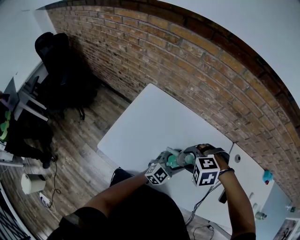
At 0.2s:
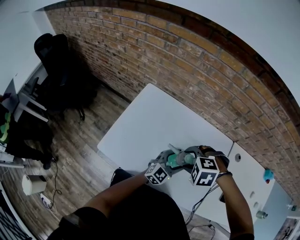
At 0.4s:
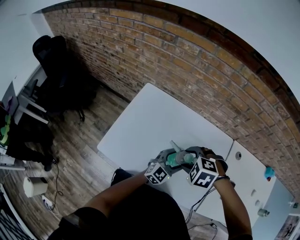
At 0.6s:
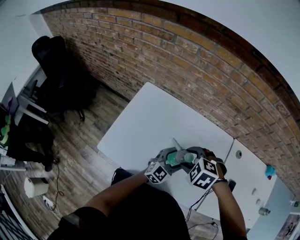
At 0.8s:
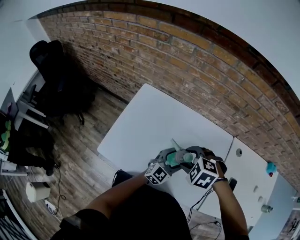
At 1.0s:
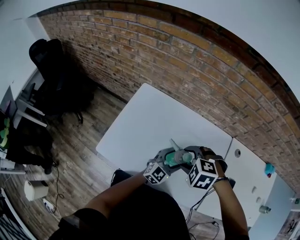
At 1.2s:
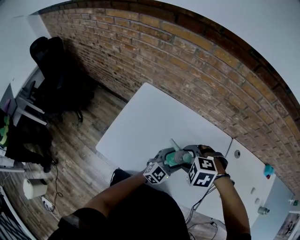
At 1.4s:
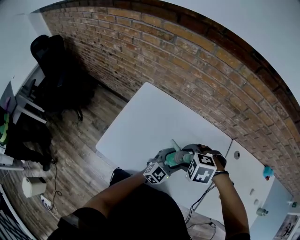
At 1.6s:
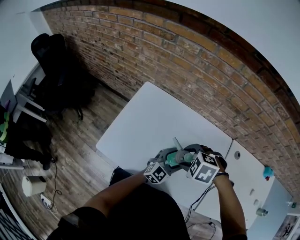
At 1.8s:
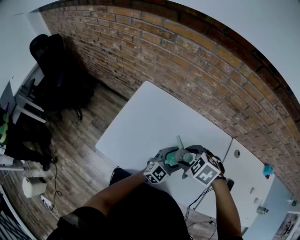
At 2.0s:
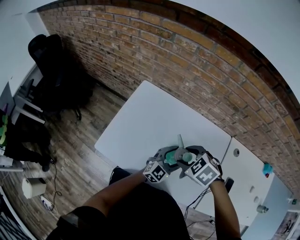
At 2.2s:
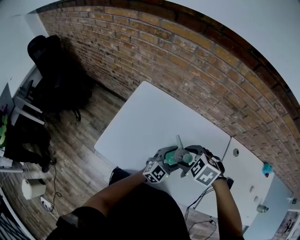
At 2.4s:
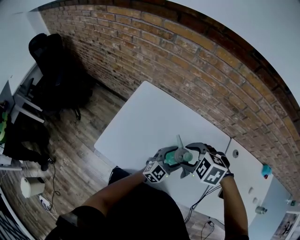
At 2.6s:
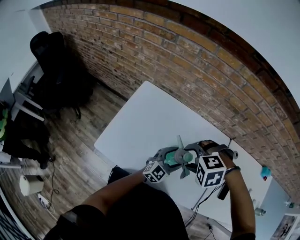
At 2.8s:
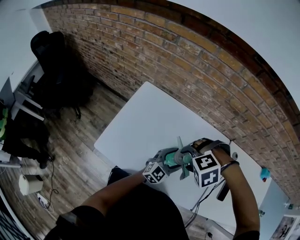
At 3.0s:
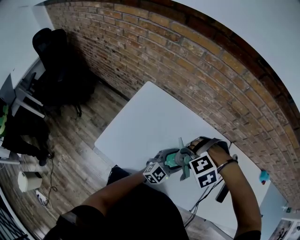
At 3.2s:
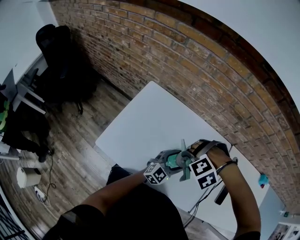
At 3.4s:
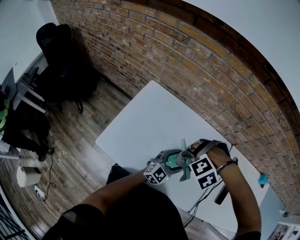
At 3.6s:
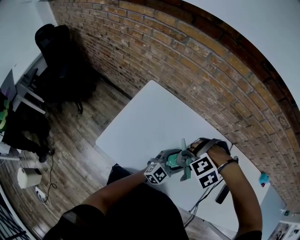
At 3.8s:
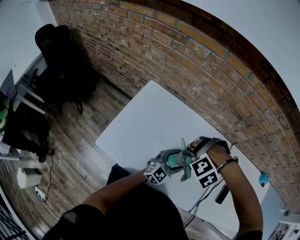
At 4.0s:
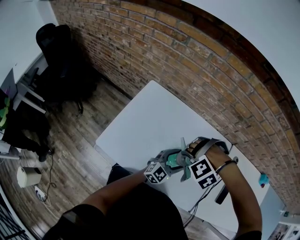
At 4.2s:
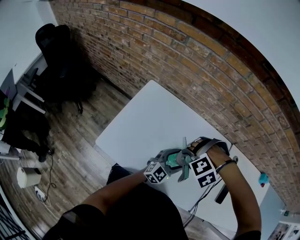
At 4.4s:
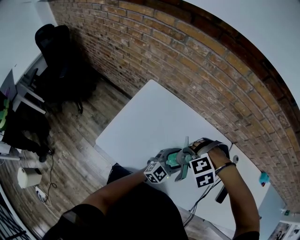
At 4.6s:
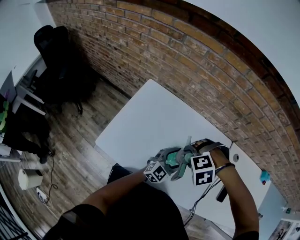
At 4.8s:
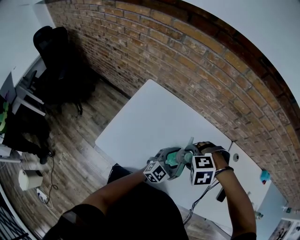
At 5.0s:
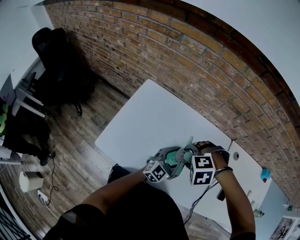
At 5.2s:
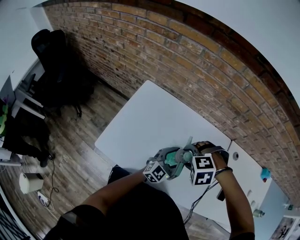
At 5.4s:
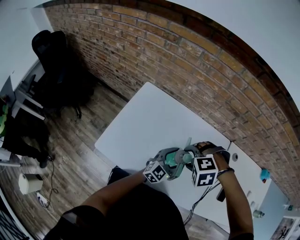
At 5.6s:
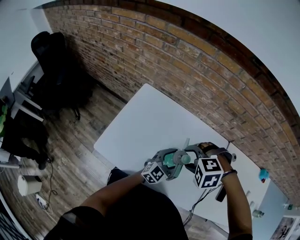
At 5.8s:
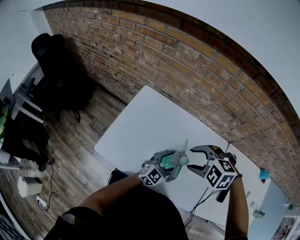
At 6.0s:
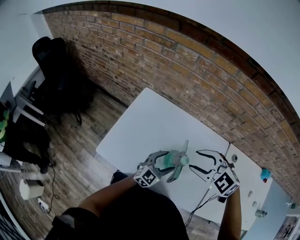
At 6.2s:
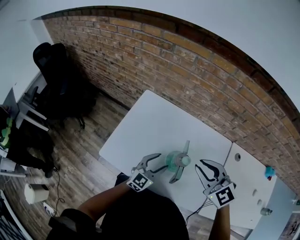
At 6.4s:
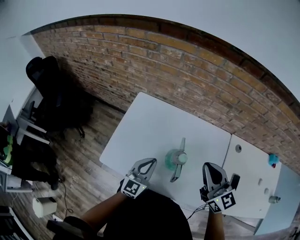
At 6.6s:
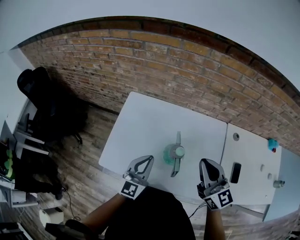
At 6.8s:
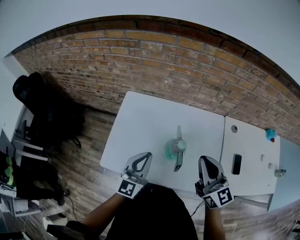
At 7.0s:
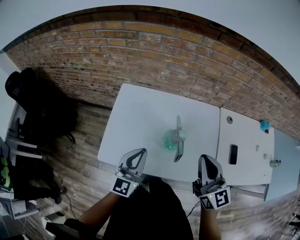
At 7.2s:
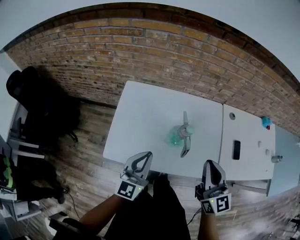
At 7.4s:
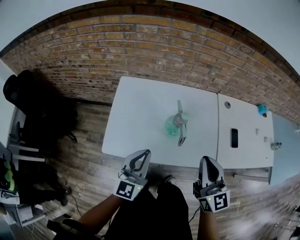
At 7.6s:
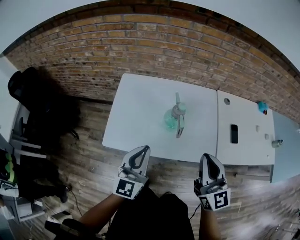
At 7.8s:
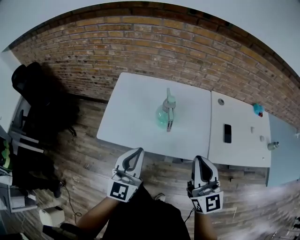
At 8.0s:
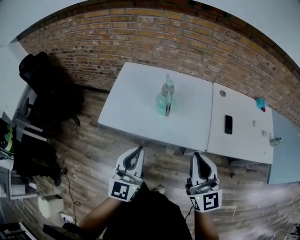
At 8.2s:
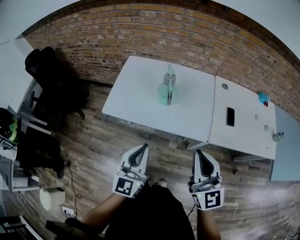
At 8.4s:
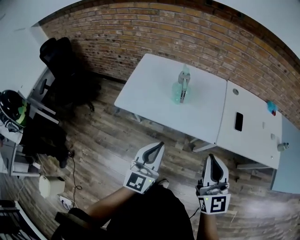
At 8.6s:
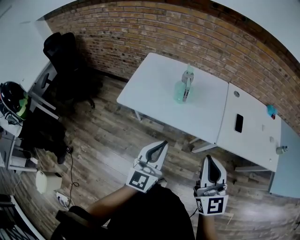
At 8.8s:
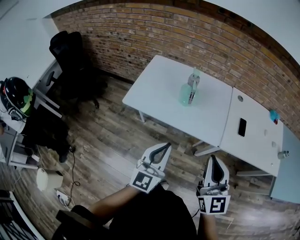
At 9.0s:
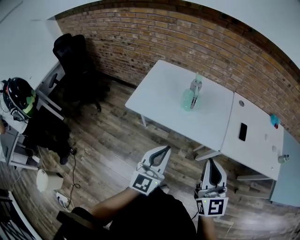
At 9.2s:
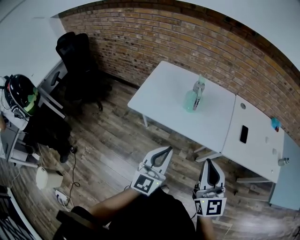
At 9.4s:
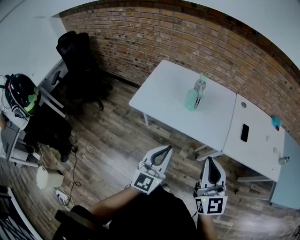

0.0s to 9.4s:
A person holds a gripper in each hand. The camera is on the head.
0.0s to 1.6s: The right gripper turns by some 20 degrees.
1.6s to 3.2s: The right gripper rotates around the line of its fingers by some 50 degrees, counterclockwise from behind.
3.2s to 4.8s: The right gripper rotates some 30 degrees.
4.8s to 6.2s: The right gripper travels upward by roughly 10 cm, points its fingers about 60 degrees further upward, and closes up. The left gripper changes place by roughly 10 cm.
6.2s to 7.8s: The left gripper goes about 30 cm backward and upward, and closes its fingers. Meanwhile the right gripper moves backward, roughly 25 cm, rotates roughly 50 degrees, and closes its fingers.
7.8s to 9.4s: The grippers both shift backward by approximately 20 cm.

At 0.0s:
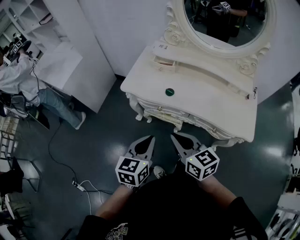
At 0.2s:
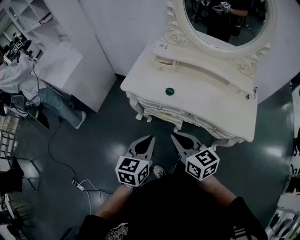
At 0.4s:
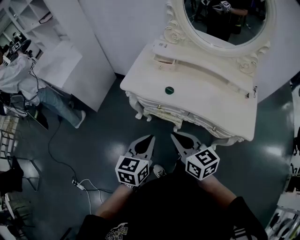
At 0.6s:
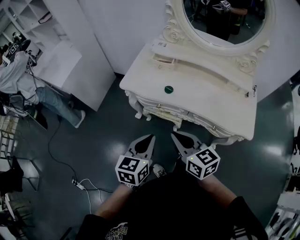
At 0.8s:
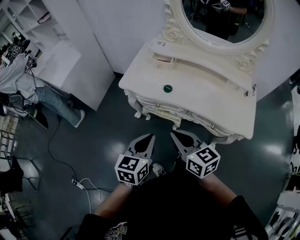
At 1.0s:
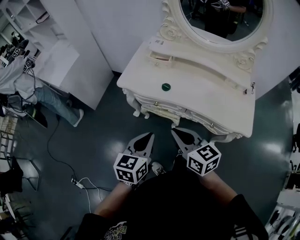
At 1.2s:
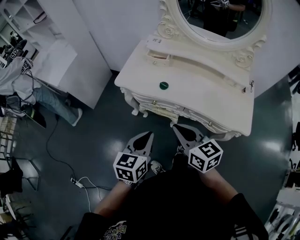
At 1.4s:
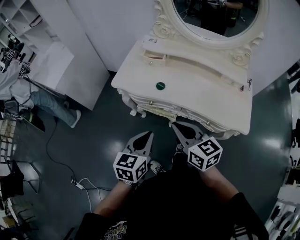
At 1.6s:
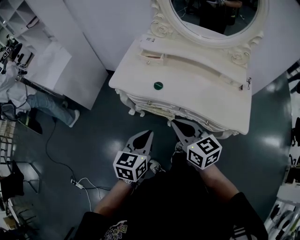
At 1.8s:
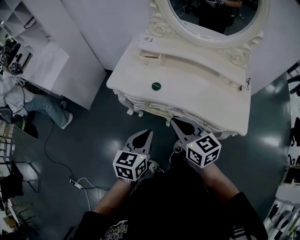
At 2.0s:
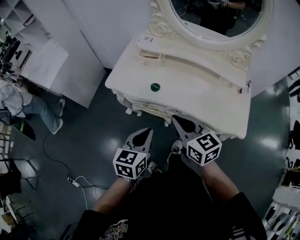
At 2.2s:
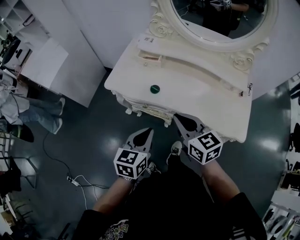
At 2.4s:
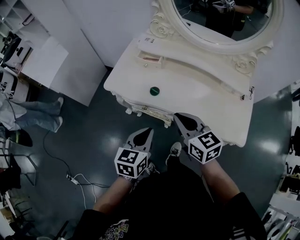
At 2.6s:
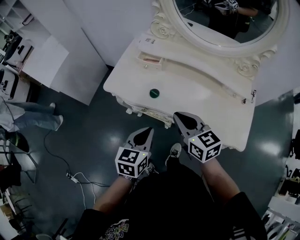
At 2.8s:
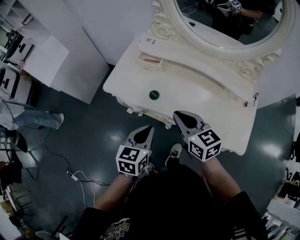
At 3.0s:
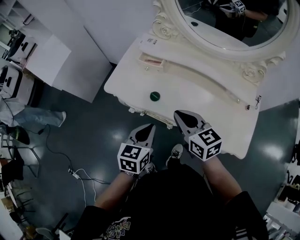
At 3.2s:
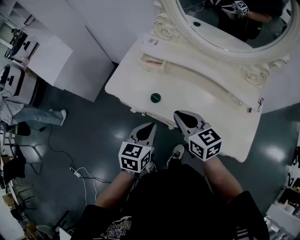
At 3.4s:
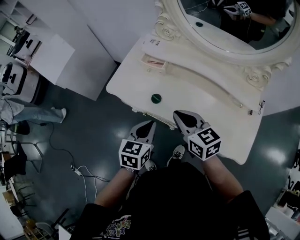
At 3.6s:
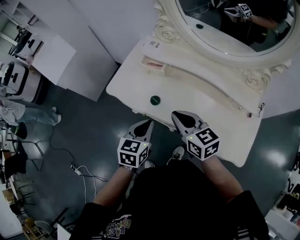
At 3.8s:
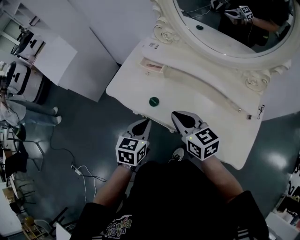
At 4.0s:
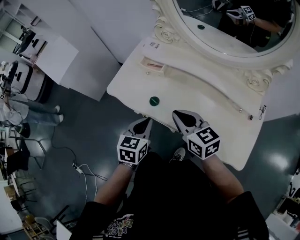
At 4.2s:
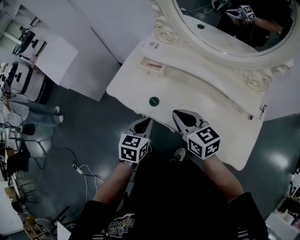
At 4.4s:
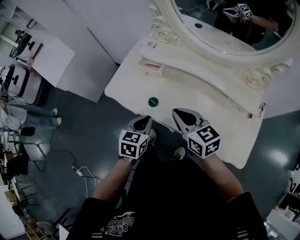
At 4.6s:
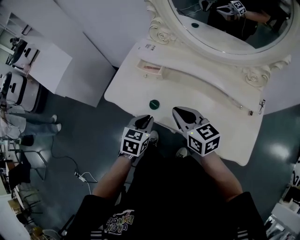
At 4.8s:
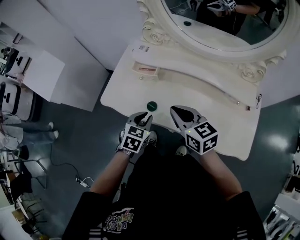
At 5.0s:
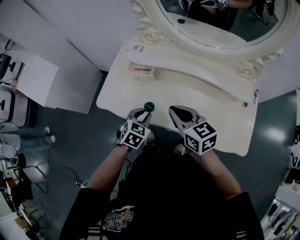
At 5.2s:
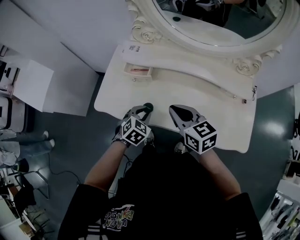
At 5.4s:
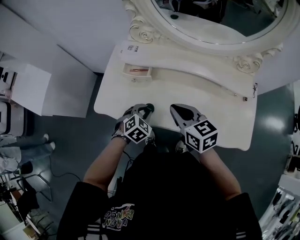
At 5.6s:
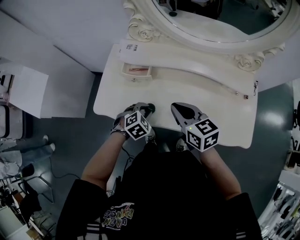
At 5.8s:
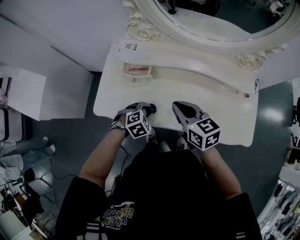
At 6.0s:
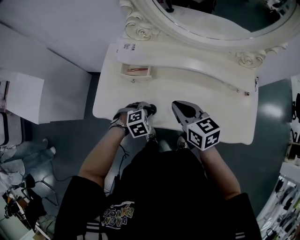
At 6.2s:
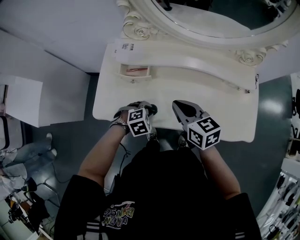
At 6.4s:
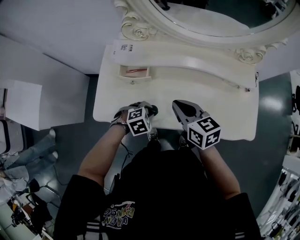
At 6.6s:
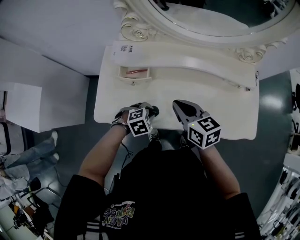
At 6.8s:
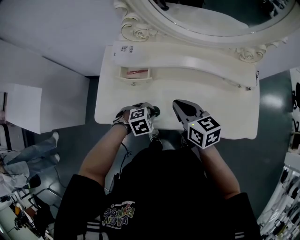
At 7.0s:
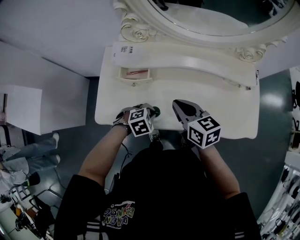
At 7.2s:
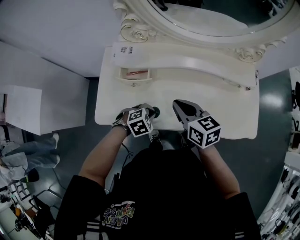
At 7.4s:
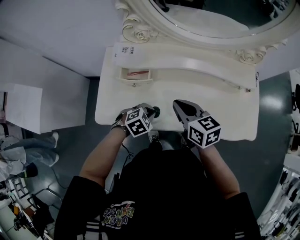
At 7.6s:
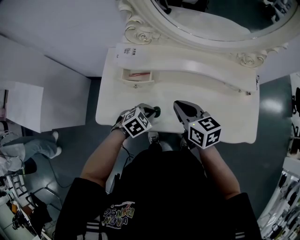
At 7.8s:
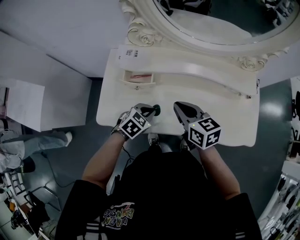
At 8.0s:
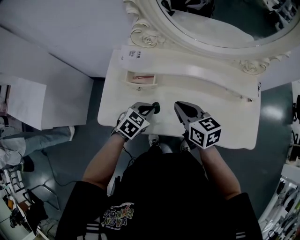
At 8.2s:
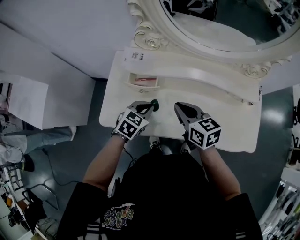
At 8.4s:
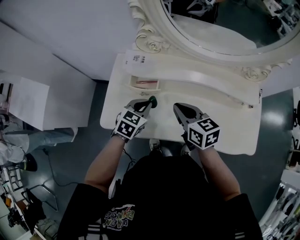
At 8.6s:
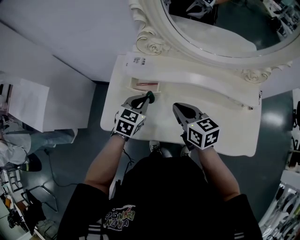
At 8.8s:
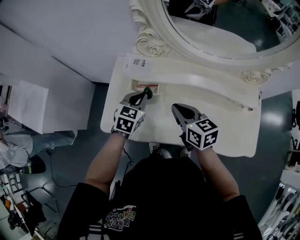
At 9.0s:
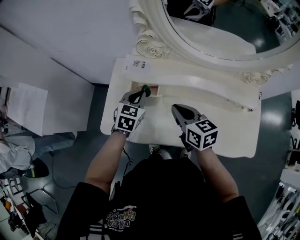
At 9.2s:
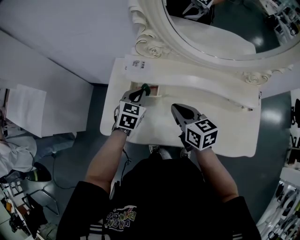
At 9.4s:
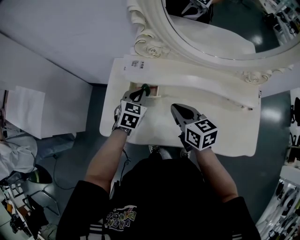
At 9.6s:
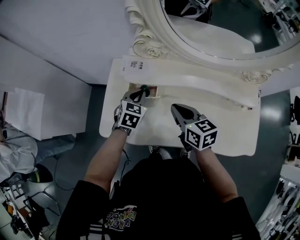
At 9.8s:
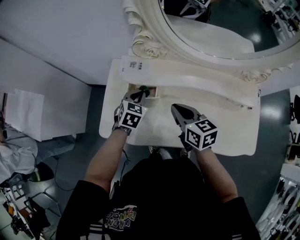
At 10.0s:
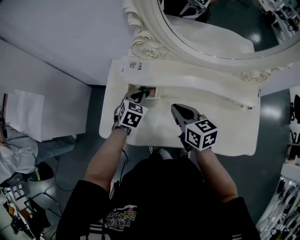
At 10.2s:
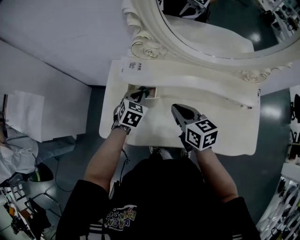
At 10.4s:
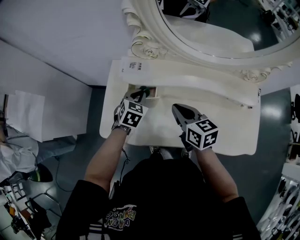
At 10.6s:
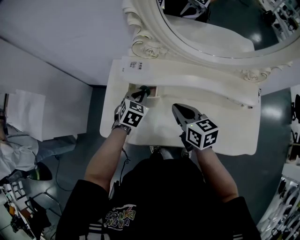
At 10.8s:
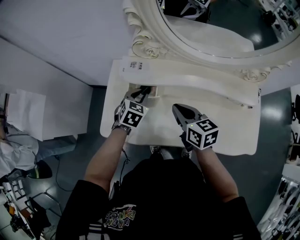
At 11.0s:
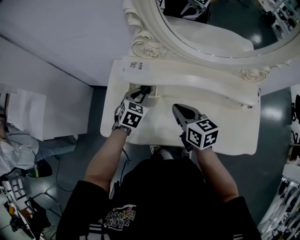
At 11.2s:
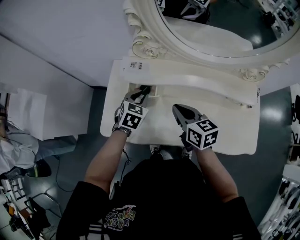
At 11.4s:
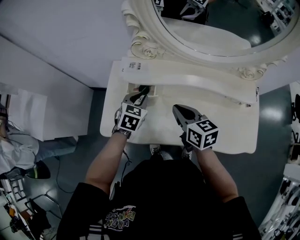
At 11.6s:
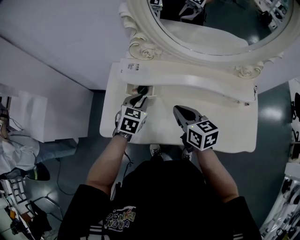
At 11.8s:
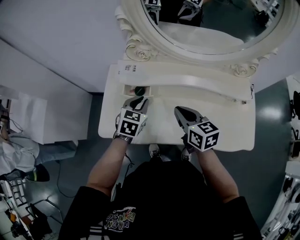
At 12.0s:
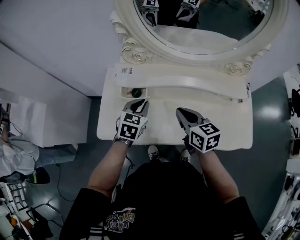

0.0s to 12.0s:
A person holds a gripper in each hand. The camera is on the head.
0.0s to 1.6s: Both grippers move to the right, some 5 cm.
1.6s to 3.0s: Both grippers move forward and to the right, approximately 15 cm.
3.0s to 4.4s: The left gripper heads forward, covering approximately 5 cm.
4.4s to 6.0s: The right gripper shifts by some 10 cm, and changes its angle by roughly 20 degrees. The left gripper moves downward, some 15 cm, and rotates around the line of its fingers by about 60 degrees, clockwise from behind.
6.0s to 7.6s: There are only small adjustments of the grippers.
7.6s to 9.0s: The right gripper changes place by some 5 cm, while the left gripper is displaced forward, upward and to the left by approximately 20 cm, and changes its angle by some 40 degrees.
9.0s to 10.4s: The grippers stay close to where they were, moving slightly.
10.4s to 12.0s: The left gripper is displaced upward, backward and to the right by roughly 10 cm. The right gripper goes some 10 cm to the right and backward.

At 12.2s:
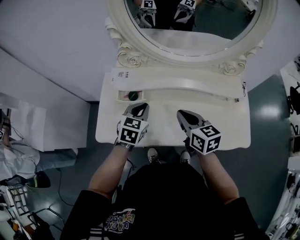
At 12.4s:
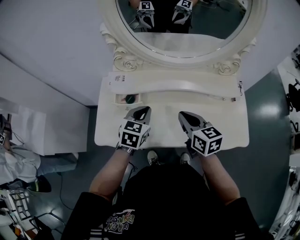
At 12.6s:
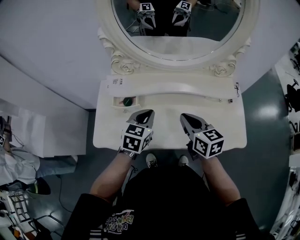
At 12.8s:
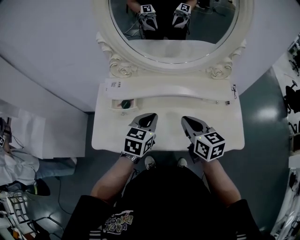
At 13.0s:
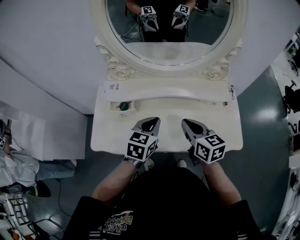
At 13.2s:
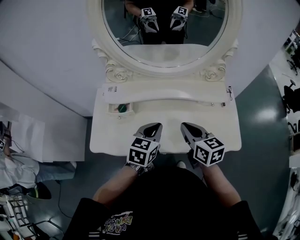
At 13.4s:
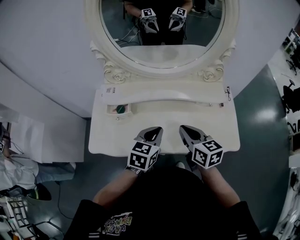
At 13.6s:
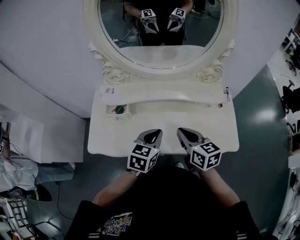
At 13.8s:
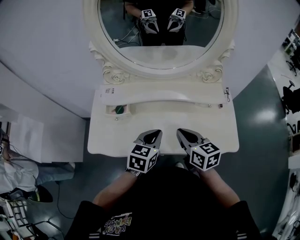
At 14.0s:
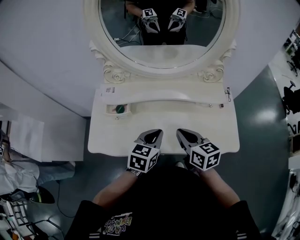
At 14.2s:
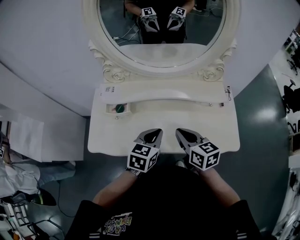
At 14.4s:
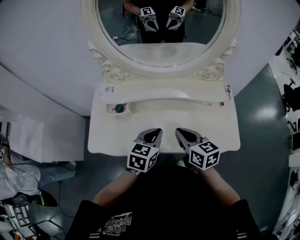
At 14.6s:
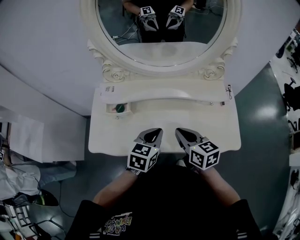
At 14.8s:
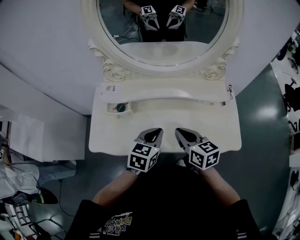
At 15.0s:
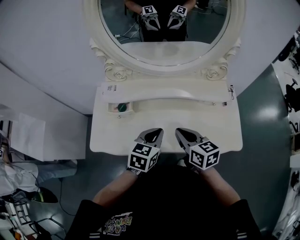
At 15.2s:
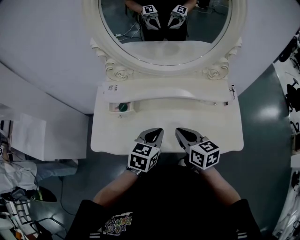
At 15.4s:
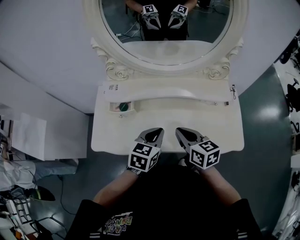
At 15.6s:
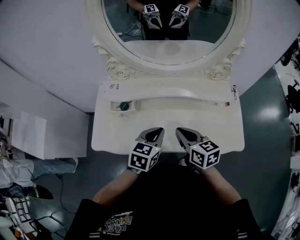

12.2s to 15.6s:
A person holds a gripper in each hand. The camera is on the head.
12.2s to 13.8s: The left gripper moves to the right and backward, some 15 cm. The right gripper is displaced to the right and backward by some 10 cm.
13.8s to 15.6s: There are only small adjustments of the grippers.
